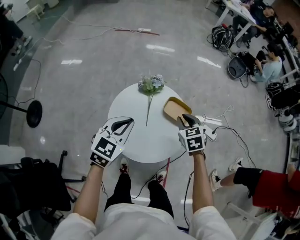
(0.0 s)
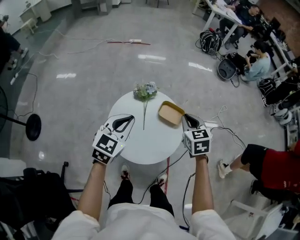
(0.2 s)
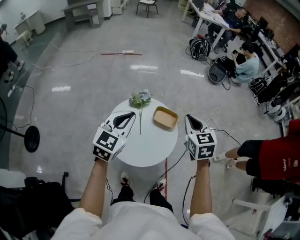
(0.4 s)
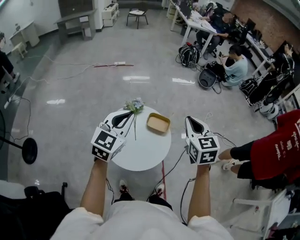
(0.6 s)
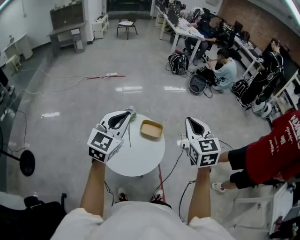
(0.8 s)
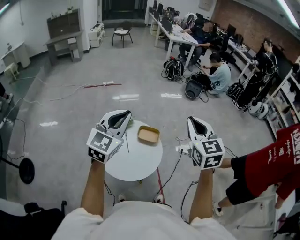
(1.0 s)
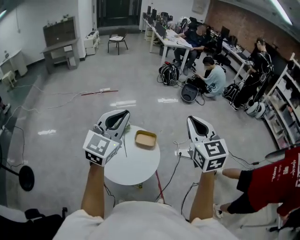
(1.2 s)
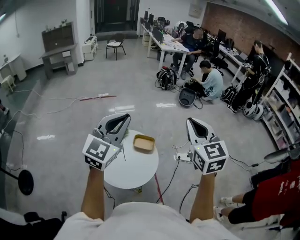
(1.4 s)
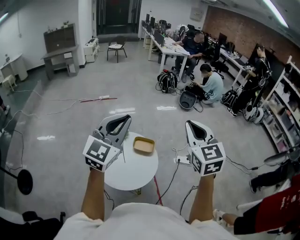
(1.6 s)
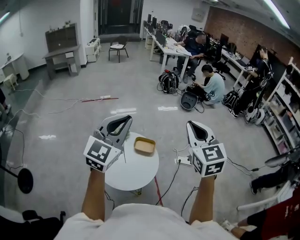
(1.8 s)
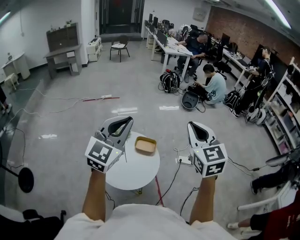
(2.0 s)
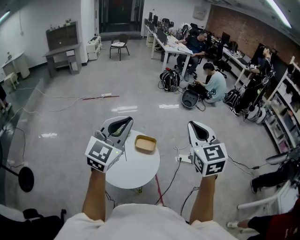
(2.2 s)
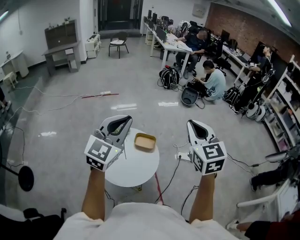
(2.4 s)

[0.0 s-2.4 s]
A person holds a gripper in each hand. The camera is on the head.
0.0 to 1.2 s: Both grippers move upward, approximately 35 cm. The right gripper tips its fingers upward by approximately 40 degrees, while the left gripper swivels approximately 30 degrees.
1.2 to 2.4 s: The grippers make only small movements.

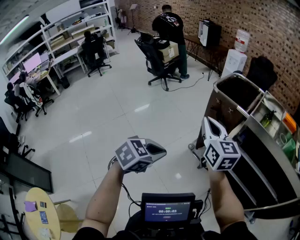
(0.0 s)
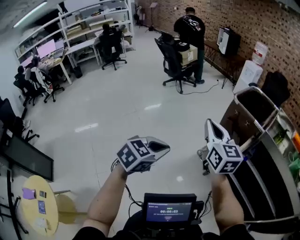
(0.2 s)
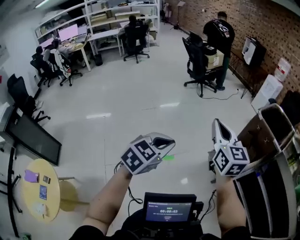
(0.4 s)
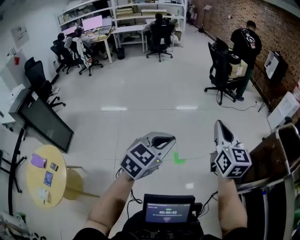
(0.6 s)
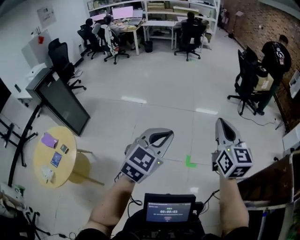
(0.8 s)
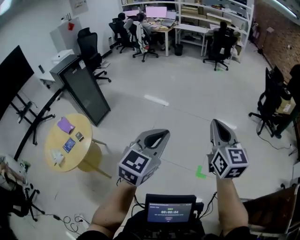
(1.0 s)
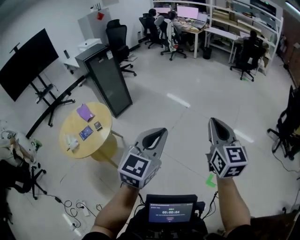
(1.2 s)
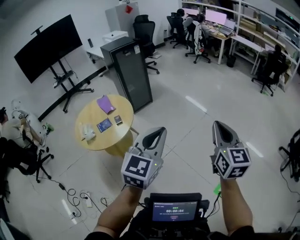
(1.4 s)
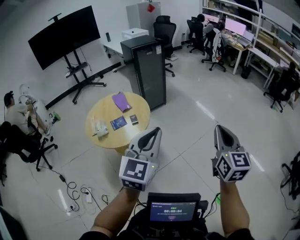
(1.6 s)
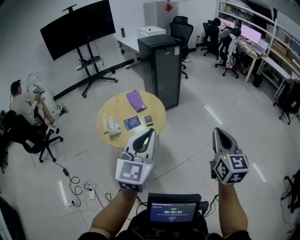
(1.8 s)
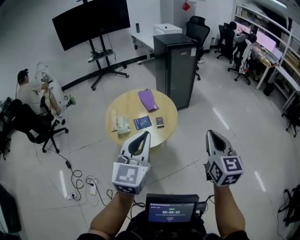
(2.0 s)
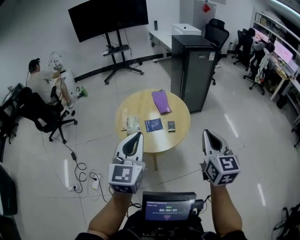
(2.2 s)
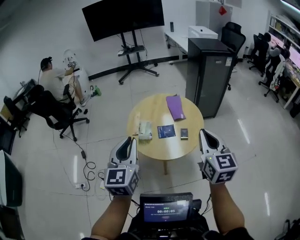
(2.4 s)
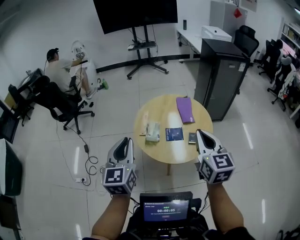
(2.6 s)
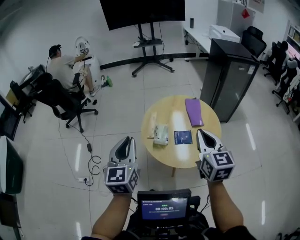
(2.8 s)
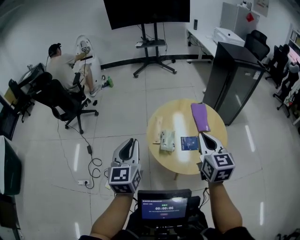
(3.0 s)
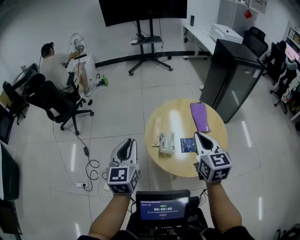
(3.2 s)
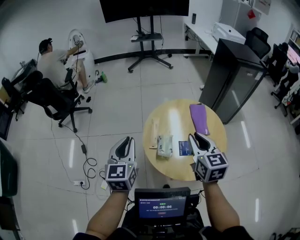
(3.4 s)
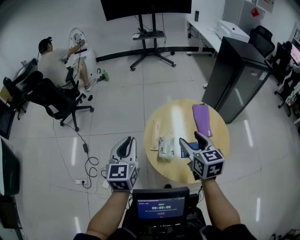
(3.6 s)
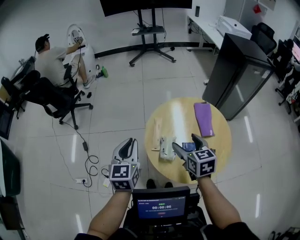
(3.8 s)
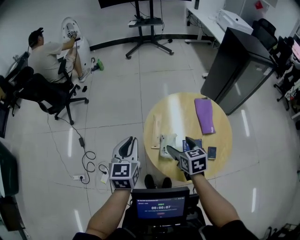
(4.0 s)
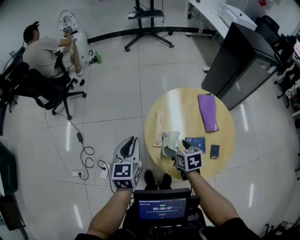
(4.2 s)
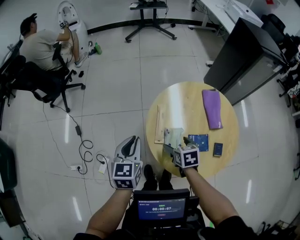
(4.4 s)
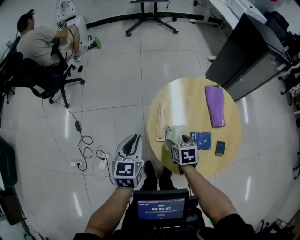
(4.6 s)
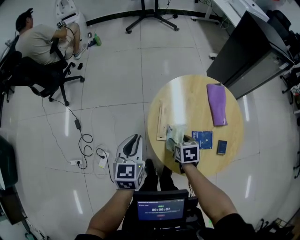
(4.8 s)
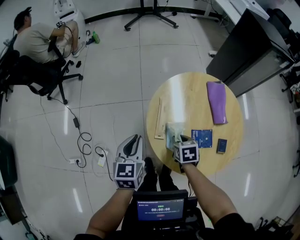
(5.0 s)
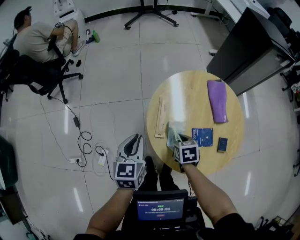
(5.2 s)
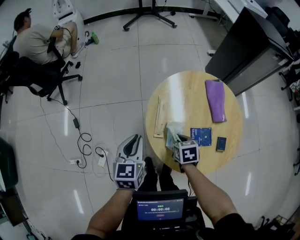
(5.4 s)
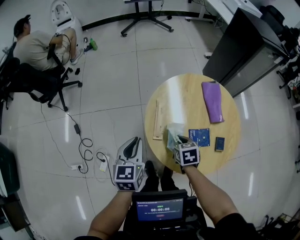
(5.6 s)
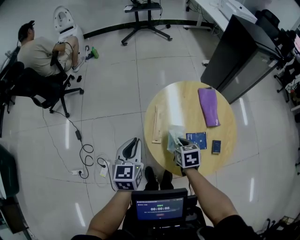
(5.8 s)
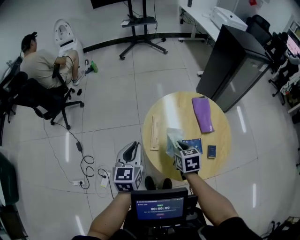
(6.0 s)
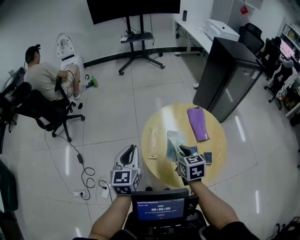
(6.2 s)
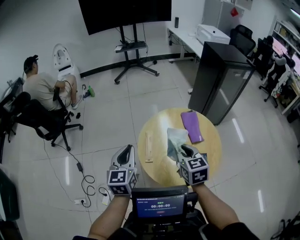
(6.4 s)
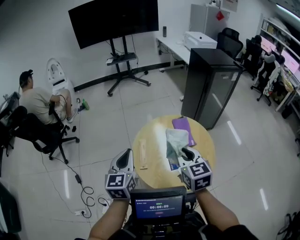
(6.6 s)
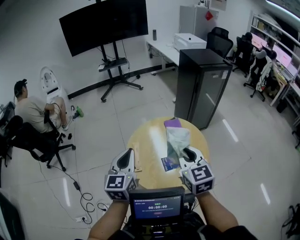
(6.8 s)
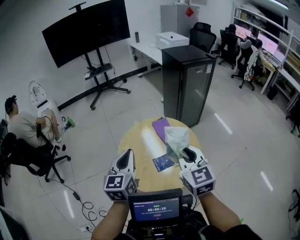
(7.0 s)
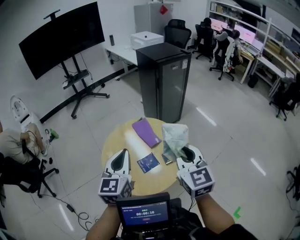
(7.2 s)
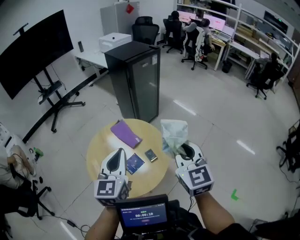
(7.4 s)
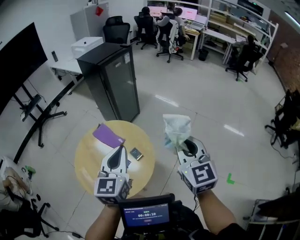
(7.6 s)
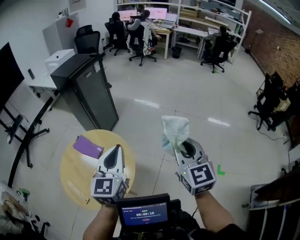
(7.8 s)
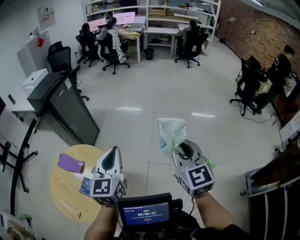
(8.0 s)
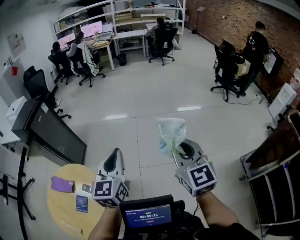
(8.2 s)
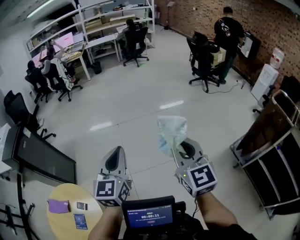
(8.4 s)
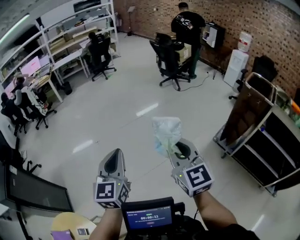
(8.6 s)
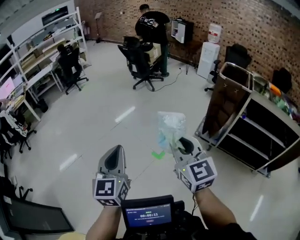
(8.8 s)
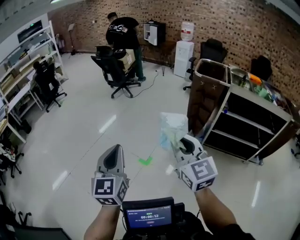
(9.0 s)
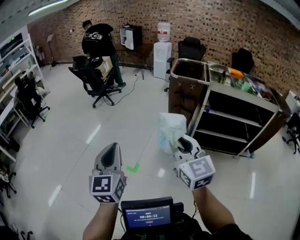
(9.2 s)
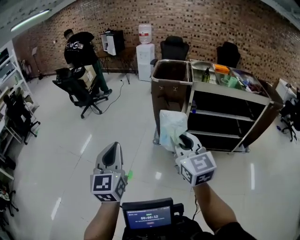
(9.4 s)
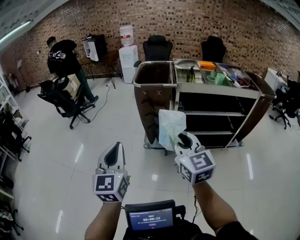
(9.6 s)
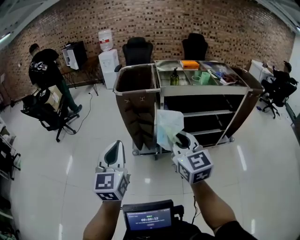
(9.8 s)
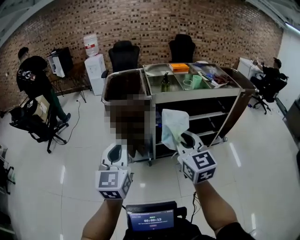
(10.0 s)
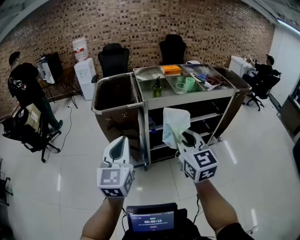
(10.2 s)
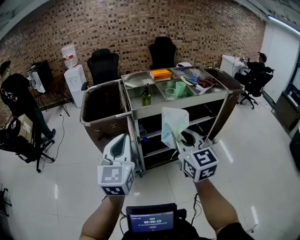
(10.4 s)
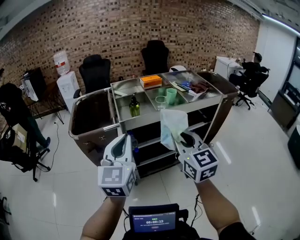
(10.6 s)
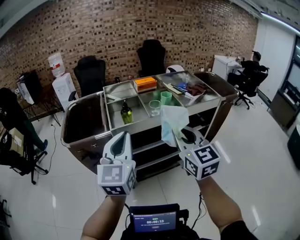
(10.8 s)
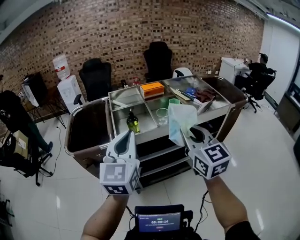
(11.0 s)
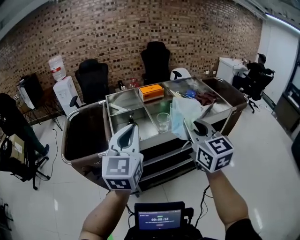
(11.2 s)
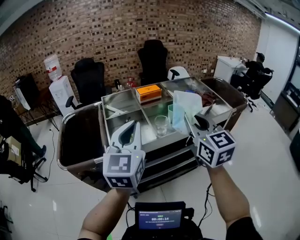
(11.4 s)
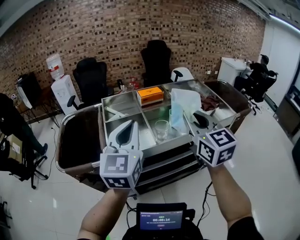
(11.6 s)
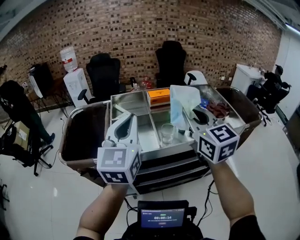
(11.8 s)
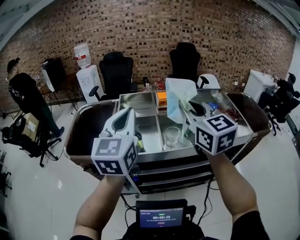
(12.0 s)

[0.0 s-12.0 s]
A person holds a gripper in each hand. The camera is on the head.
0.0 to 1.6 s: The two grippers travel together, roughly 1 m. The right gripper swivels roughly 80 degrees; the left gripper angles its fingers upward, by roughly 40 degrees.
1.6 to 3.0 s: Both grippers are carried approximately 90 cm. The left gripper turns by approximately 50 degrees, while the right gripper turns by approximately 40 degrees.
3.0 to 4.4 s: The left gripper travels forward and downward by some 40 cm; the right gripper shifts some 50 cm downward and forward, angles its fingers downward, by about 40 degrees, and opens its fingers.
4.4 to 6.0 s: The two grippers go roughly 10 cm upward. The right gripper closes its fingers.
6.0 to 7.6 s: The pair of grippers is taken about 60 cm. The left gripper rotates approximately 50 degrees. The right gripper tips its fingers upward by approximately 40 degrees.
7.6 to 9.0 s: The pair of grippers is taken approximately 1 m. The left gripper swivels approximately 90 degrees, while the right gripper swivels roughly 90 degrees.
9.0 to 10.4 s: The pair of grippers is taken some 1 m. The right gripper rotates approximately 50 degrees; the left gripper swivels roughly 50 degrees.
10.4 to 12.0 s: The pair of grippers is taken forward and to the right, about 70 cm.

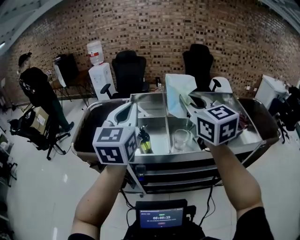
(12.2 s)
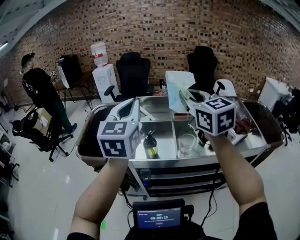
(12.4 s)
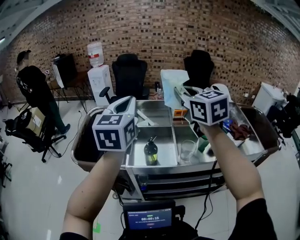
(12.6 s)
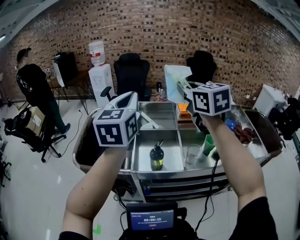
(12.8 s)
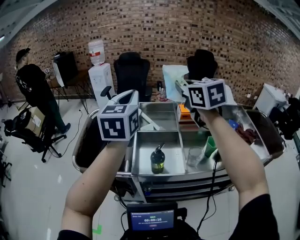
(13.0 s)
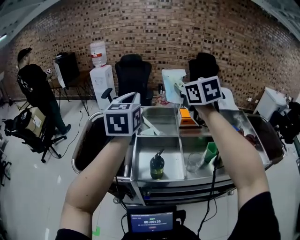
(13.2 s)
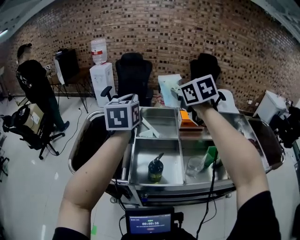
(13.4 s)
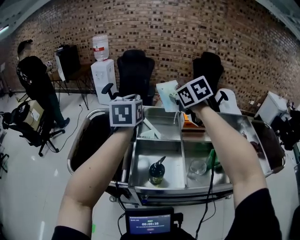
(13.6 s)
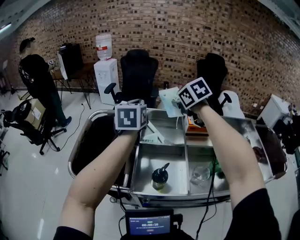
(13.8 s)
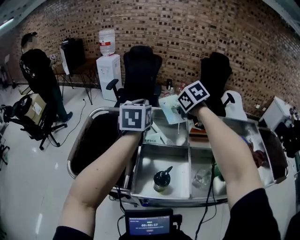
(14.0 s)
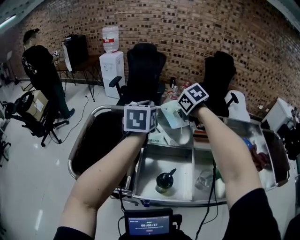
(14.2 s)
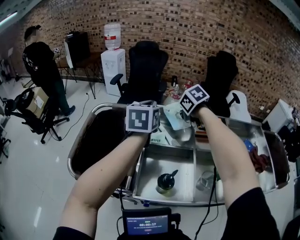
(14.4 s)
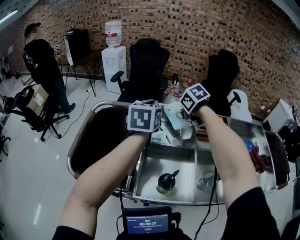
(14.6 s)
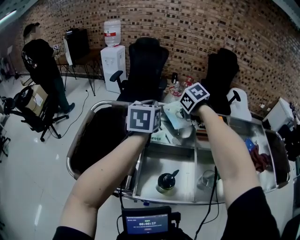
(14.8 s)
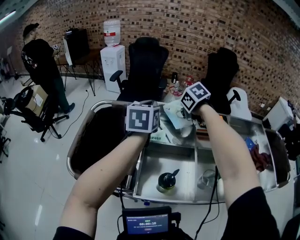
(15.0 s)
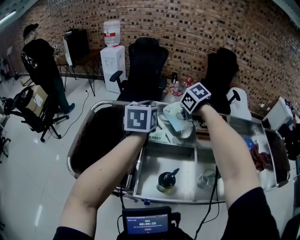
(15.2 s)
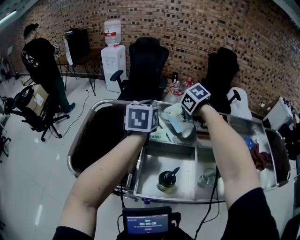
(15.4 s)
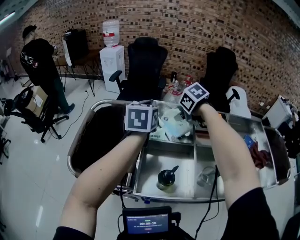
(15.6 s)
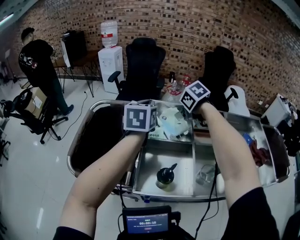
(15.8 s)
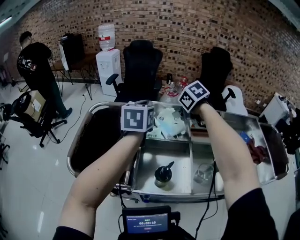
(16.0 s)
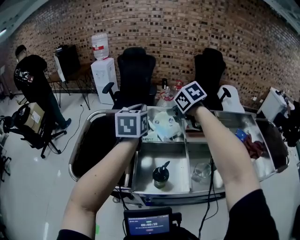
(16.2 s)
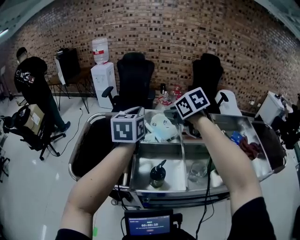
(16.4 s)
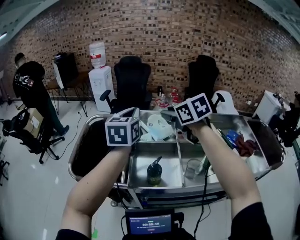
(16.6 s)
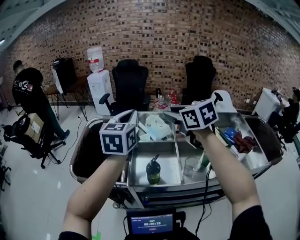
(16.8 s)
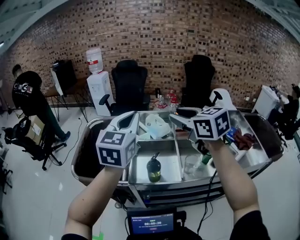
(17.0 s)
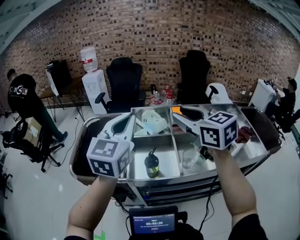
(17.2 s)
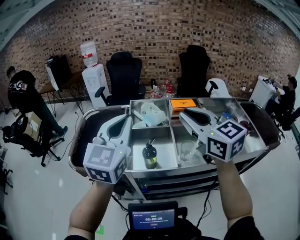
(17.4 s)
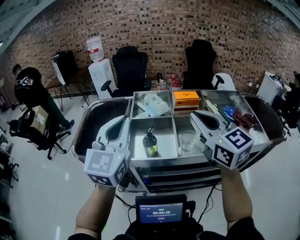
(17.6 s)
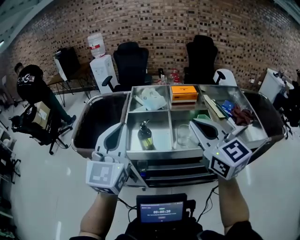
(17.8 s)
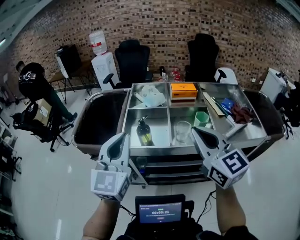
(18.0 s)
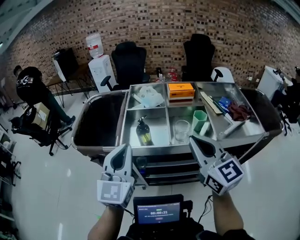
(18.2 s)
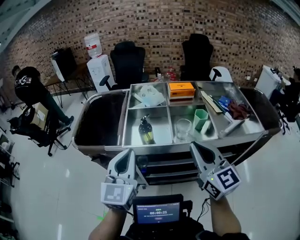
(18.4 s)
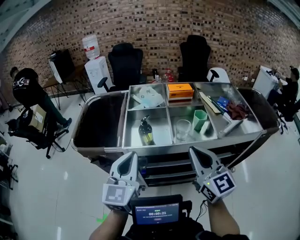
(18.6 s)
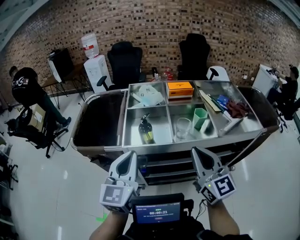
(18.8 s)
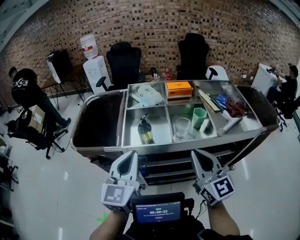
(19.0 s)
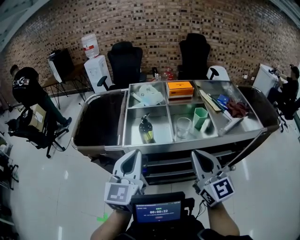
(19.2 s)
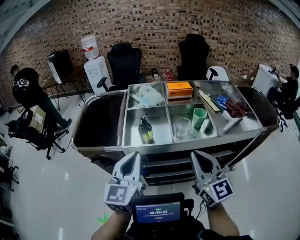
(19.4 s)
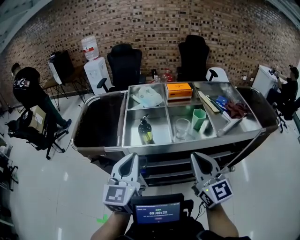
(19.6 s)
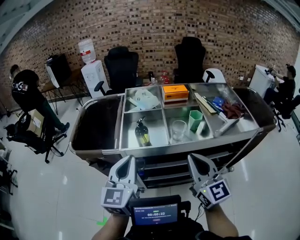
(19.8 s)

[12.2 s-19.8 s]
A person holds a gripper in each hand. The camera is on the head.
12.2 to 13.8 s: The pair of grippers is taken forward, about 50 cm. The right gripper tips its fingers downward by roughly 40 degrees, while the left gripper turns by about 20 degrees.
13.8 to 15.2 s: The right gripper goes approximately 15 cm downward, and swivels some 20 degrees. The left gripper travels downward and forward by some 10 cm.
15.2 to 16.8 s: The right gripper shifts roughly 35 cm backward and upward, and tips its fingers upward by some 40 degrees; the left gripper is displaced backward by about 25 cm.
16.8 to 18.2 s: Both grippers travel together backward, about 35 cm. The right gripper swivels roughly 30 degrees.
18.2 to 19.8 s: The right gripper is displaced backward by some 5 cm.

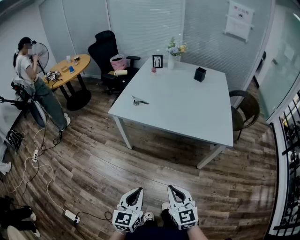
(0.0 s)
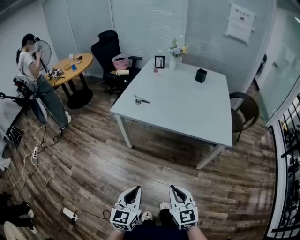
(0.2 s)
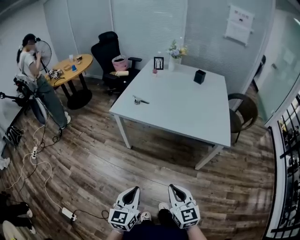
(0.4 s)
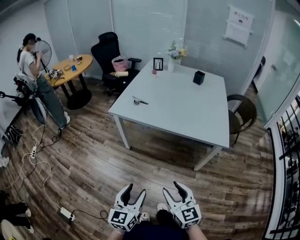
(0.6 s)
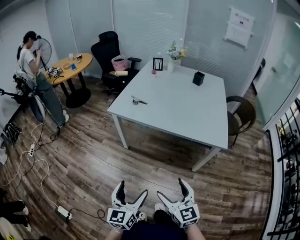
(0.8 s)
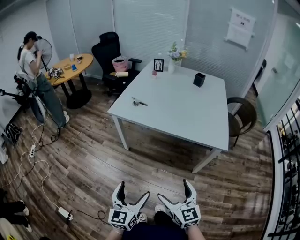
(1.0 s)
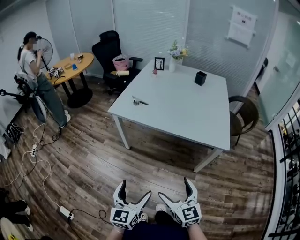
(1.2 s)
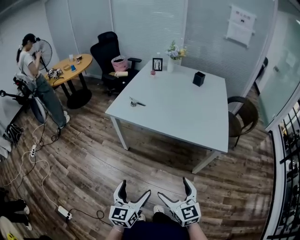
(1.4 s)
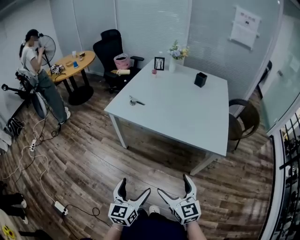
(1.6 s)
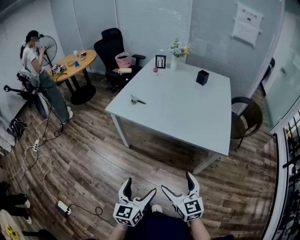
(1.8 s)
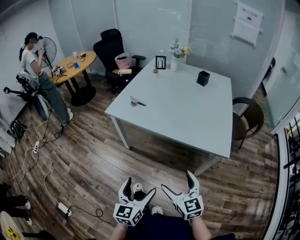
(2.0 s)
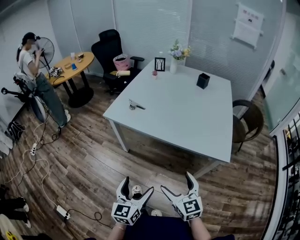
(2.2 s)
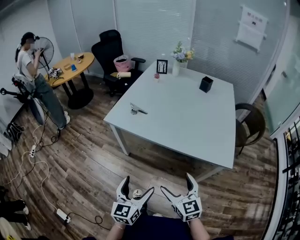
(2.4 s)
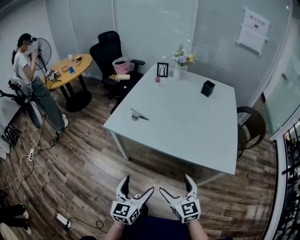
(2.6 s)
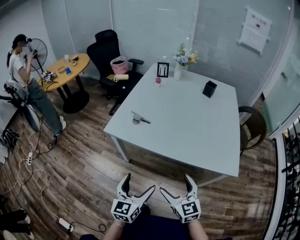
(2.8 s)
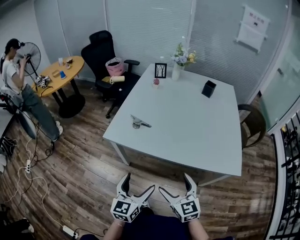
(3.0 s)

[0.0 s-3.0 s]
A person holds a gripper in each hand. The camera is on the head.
0.0 to 1.6 s: The grippers both shift to the right by about 5 cm. The left gripper opens; the right gripper opens.
1.6 to 3.0 s: Both grippers travel together forward, about 25 cm.
